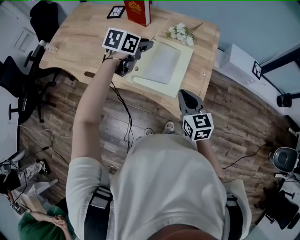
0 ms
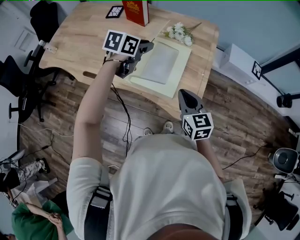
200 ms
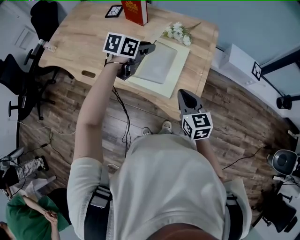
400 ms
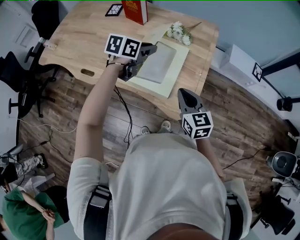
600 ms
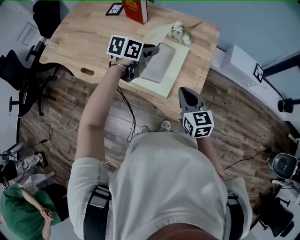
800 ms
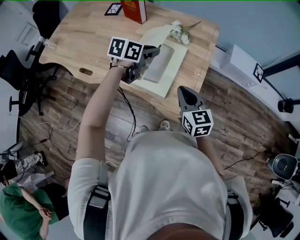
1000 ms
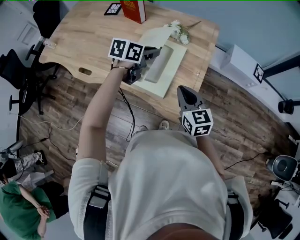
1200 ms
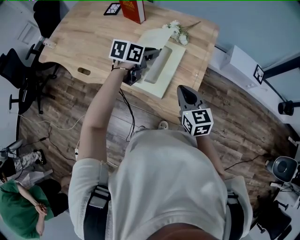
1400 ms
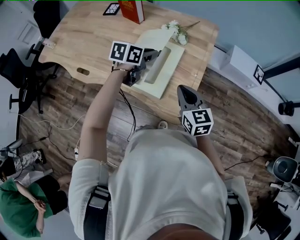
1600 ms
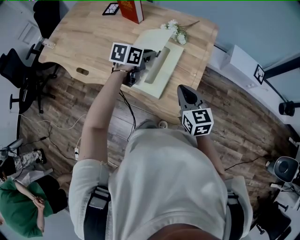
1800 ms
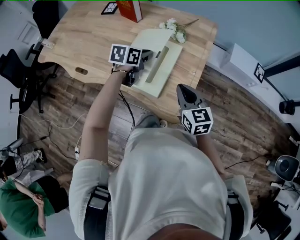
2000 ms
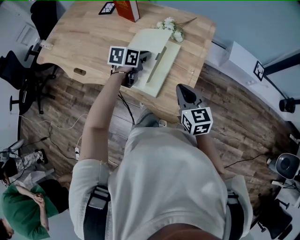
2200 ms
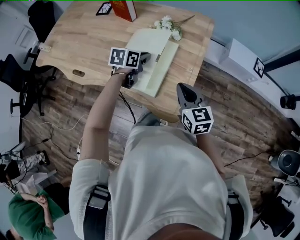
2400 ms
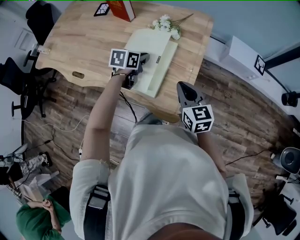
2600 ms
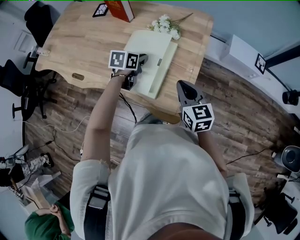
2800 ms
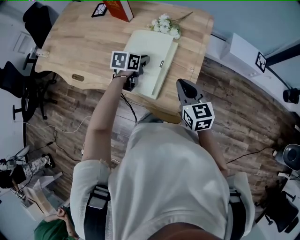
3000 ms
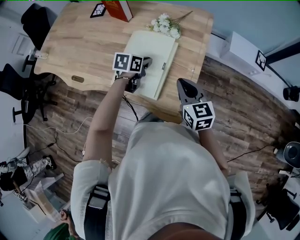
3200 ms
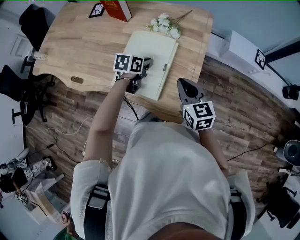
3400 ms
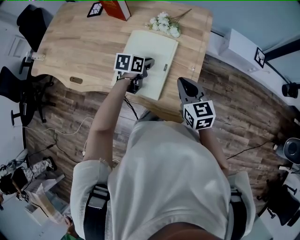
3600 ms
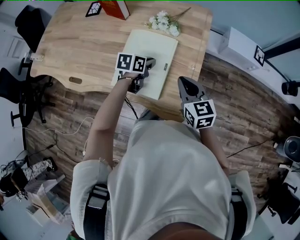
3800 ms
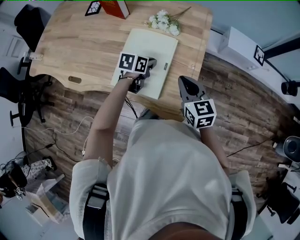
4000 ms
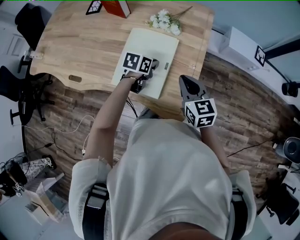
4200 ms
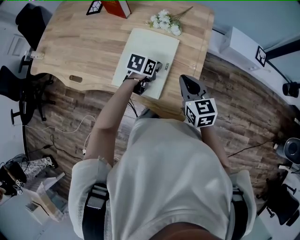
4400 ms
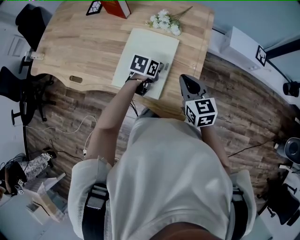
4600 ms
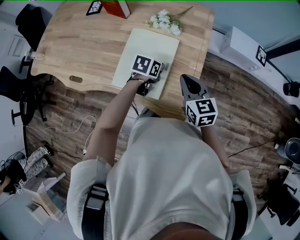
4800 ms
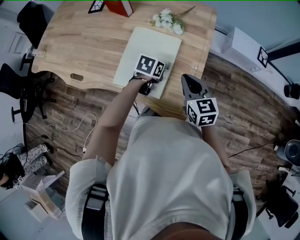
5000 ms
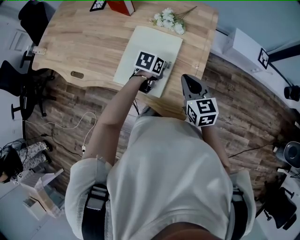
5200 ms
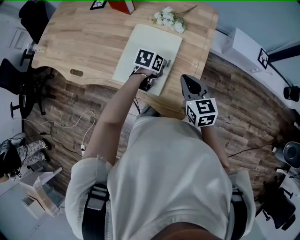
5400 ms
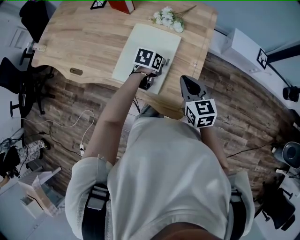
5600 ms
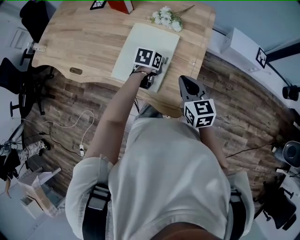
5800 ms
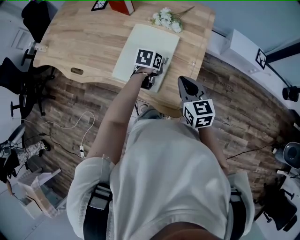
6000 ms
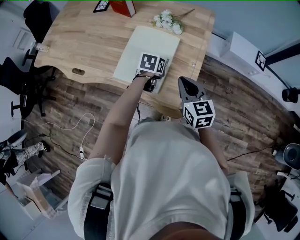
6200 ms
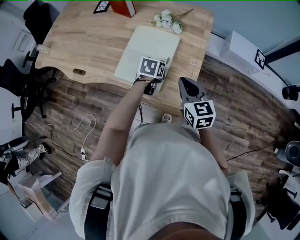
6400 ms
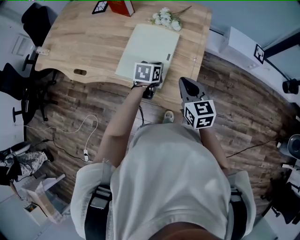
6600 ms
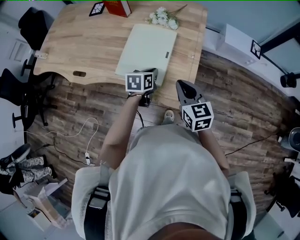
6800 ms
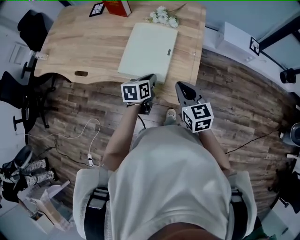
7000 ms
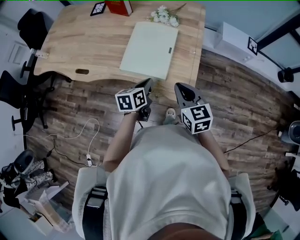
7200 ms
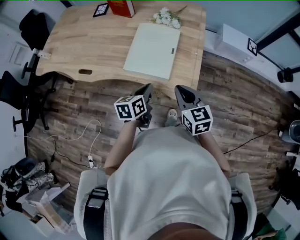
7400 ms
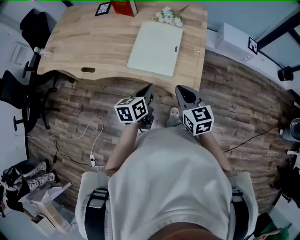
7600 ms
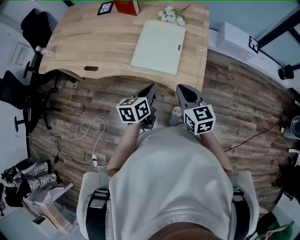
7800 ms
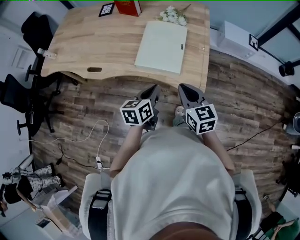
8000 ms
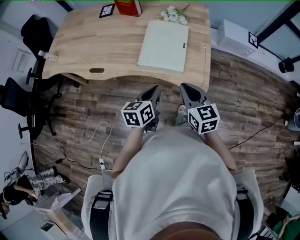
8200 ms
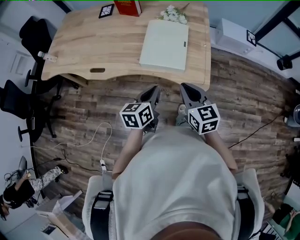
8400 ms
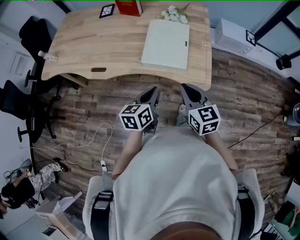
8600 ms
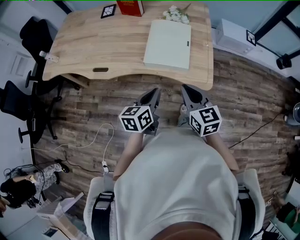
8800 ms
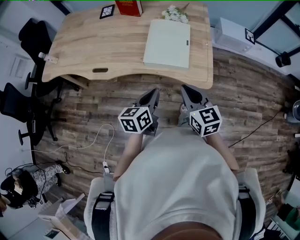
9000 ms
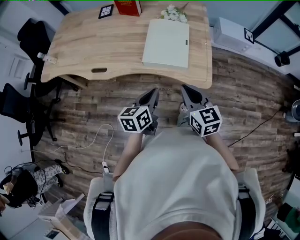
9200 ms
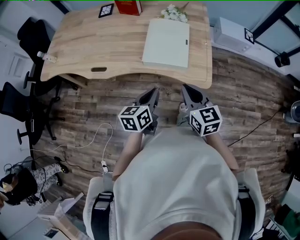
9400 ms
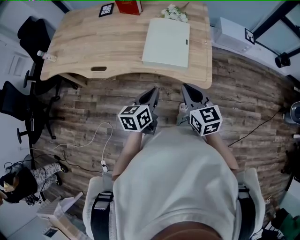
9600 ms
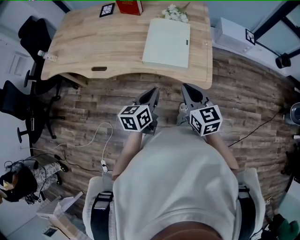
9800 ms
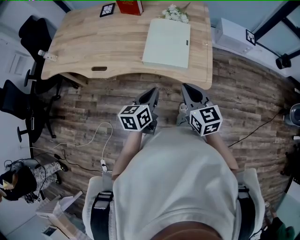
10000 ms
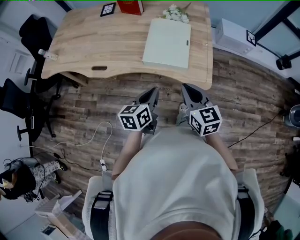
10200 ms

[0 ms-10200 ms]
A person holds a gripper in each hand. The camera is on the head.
0 ms to 1400 ms: The left gripper shifts some 10 cm to the right; the right gripper shifts some 5 cm to the right.
1400 ms to 3000 ms: The left gripper shifts approximately 10 cm downward.
3000 ms to 4400 ms: The left gripper heads to the right and downward, covering some 5 cm.
4400 ms to 5800 ms: The grippers make only small movements.
5800 ms to 7200 ms: The right gripper goes about 10 cm backward. Meanwhile the left gripper travels backward by about 20 cm, and swivels roughly 20 degrees.
7200 ms to 8800 ms: The right gripper goes about 15 cm to the left and backward. The left gripper shifts about 15 cm backward, to the left and upward.
8800 ms to 10200 ms: Neither gripper changes place.

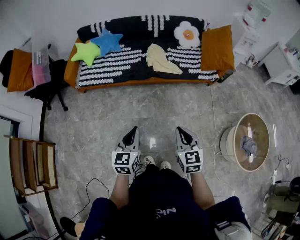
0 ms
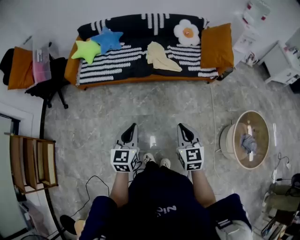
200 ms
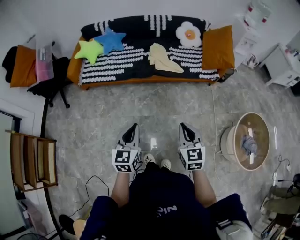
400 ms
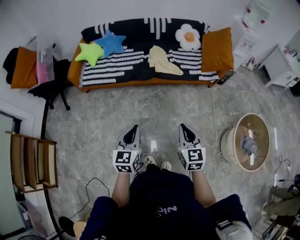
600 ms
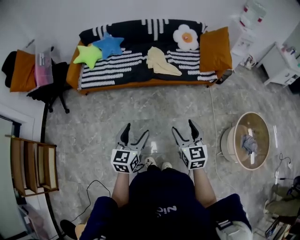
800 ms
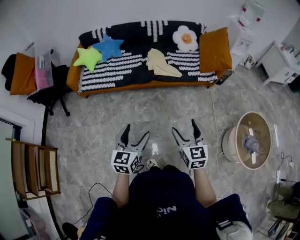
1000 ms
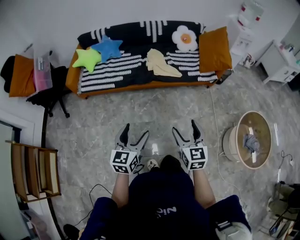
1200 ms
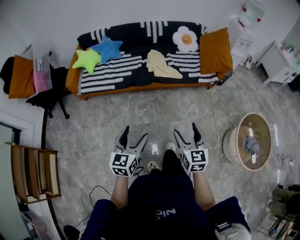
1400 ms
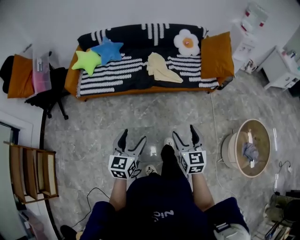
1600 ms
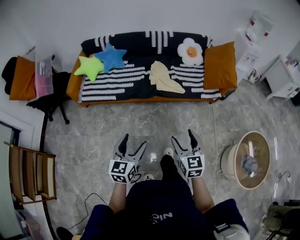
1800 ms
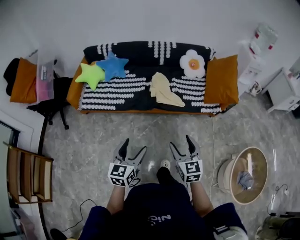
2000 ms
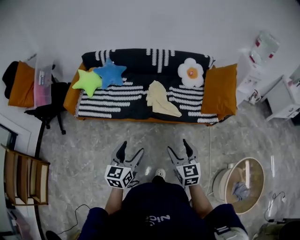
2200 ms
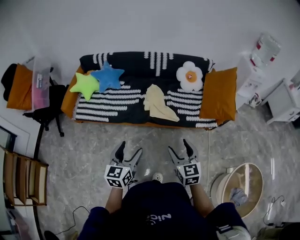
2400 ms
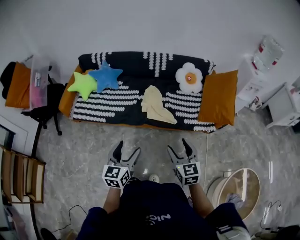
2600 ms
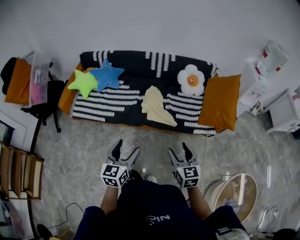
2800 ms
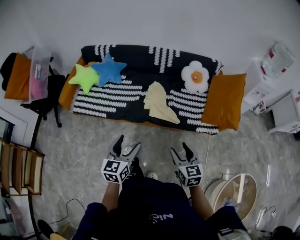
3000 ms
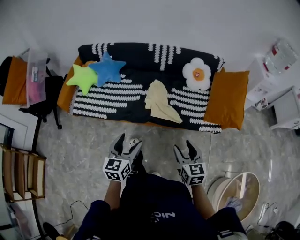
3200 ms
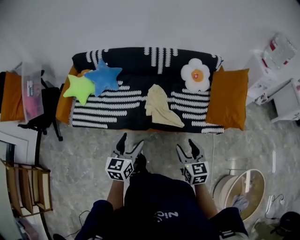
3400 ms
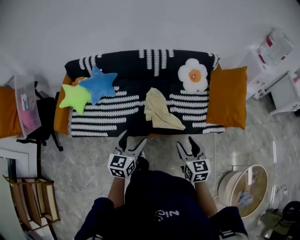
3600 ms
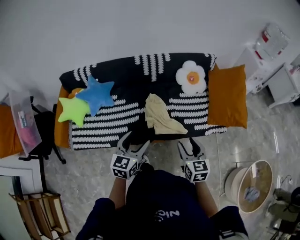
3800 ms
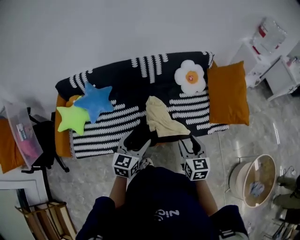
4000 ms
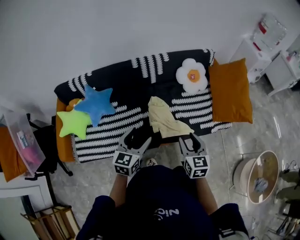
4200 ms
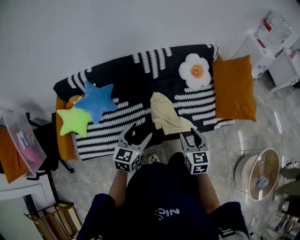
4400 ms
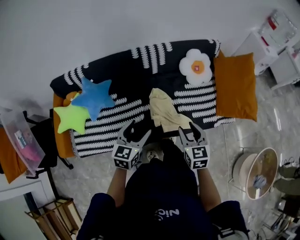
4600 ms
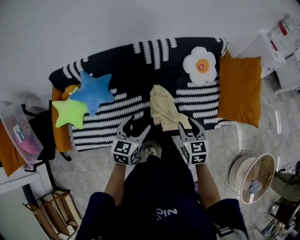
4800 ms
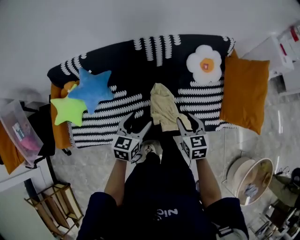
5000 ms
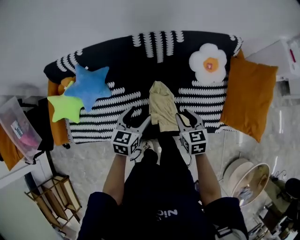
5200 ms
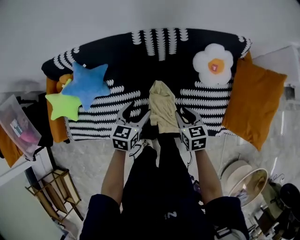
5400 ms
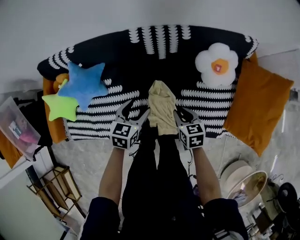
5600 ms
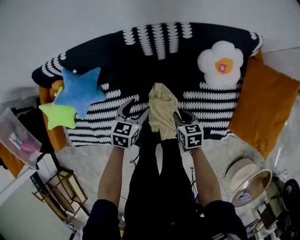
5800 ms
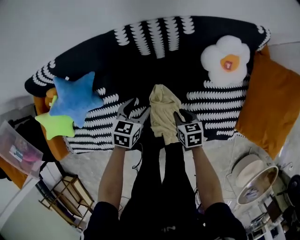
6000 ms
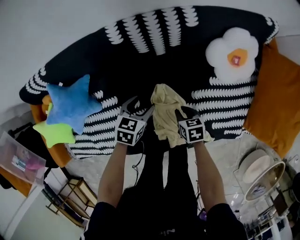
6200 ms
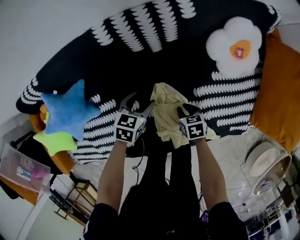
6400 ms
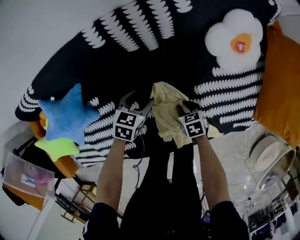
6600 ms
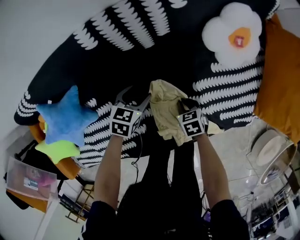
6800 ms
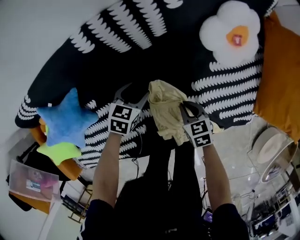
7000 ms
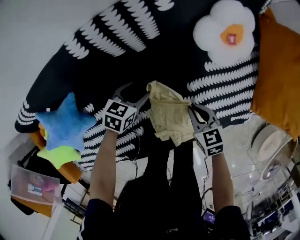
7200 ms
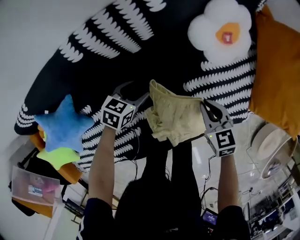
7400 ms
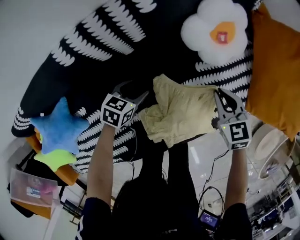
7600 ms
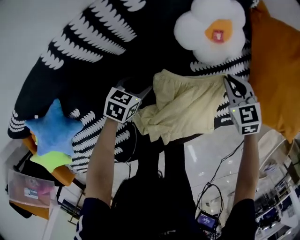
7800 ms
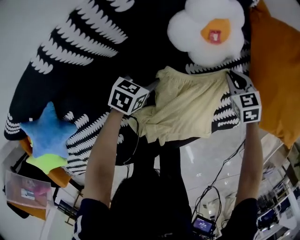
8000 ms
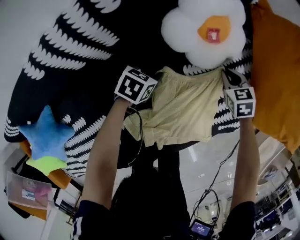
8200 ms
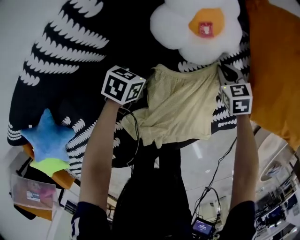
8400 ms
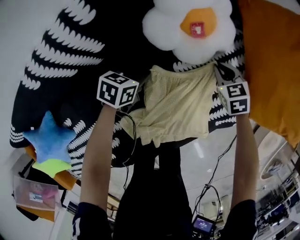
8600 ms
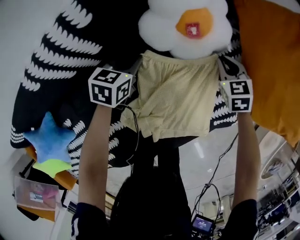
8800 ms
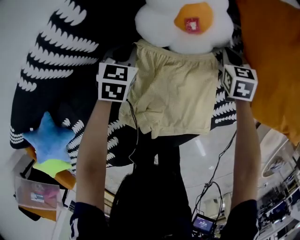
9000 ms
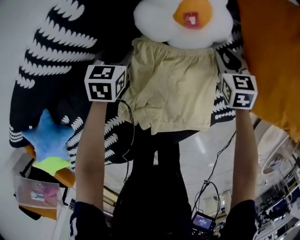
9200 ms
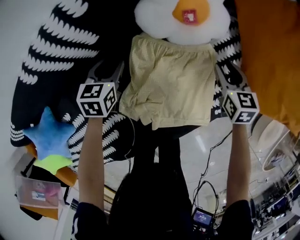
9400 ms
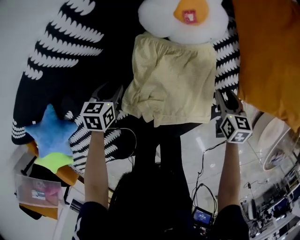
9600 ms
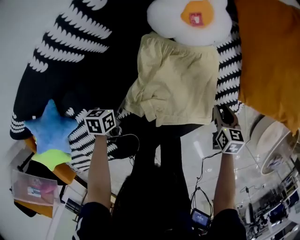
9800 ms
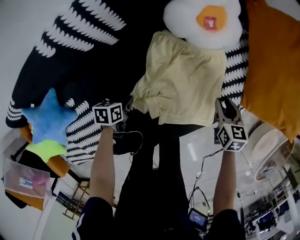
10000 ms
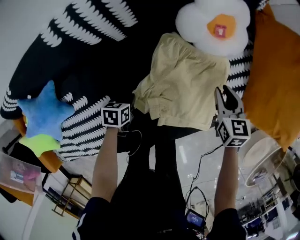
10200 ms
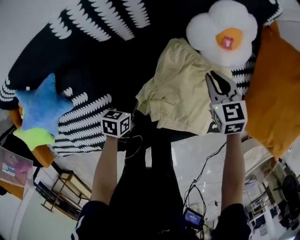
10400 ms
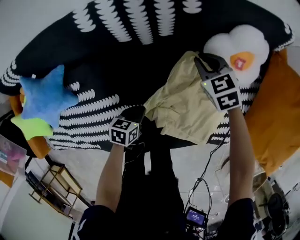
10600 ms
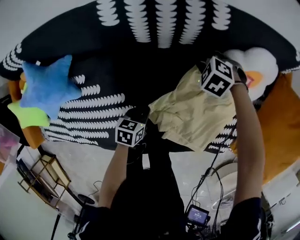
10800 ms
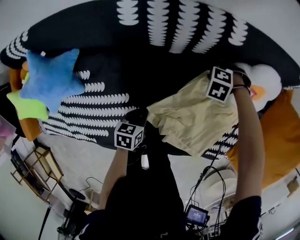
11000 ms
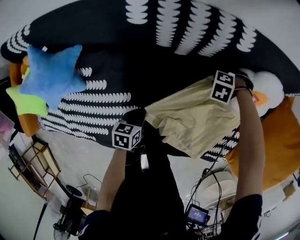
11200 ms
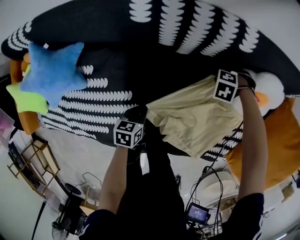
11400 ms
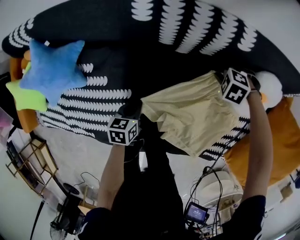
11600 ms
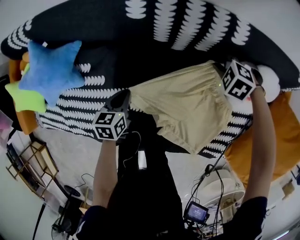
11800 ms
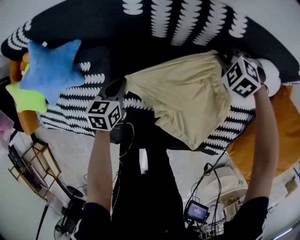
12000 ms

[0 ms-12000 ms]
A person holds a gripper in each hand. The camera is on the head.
0 ms to 1600 ms: The left gripper opens, while the right gripper opens.
1600 ms to 3000 ms: Both grippers move forward, approximately 25 cm.
3000 ms to 4400 ms: The right gripper moves about 30 cm, and swivels about 20 degrees; the left gripper ends up approximately 35 cm from where it was, and turns by approximately 30 degrees.
4400 ms to 6000 ms: The left gripper shifts roughly 40 cm forward and downward, and changes its angle by approximately 30 degrees; the right gripper travels downward and forward by about 40 cm, and turns by approximately 40 degrees.
6000 ms to 7600 ms: The left gripper goes roughly 15 cm downward, and changes its angle by roughly 30 degrees. Meanwhile the right gripper moves roughly 15 cm downward and comes back, and rotates roughly 20 degrees.
7600 ms to 9000 ms: The right gripper travels forward, to the right and downward by approximately 25 cm, and swivels approximately 30 degrees. The left gripper heads forward, covering approximately 20 cm, swivels roughly 20 degrees, and closes its fingers.
9000 ms to 10400 ms: The left gripper shifts about 30 cm backward, twists some 40 degrees counterclockwise, seen from behind, and opens, then closes once more. The right gripper heads to the left, backward and upward, covering roughly 25 cm, and turns by about 30 degrees.
10400 ms to 12000 ms: The left gripper changes place by about 15 cm, and rotates some 30 degrees. The right gripper goes downward and returns, roughly 15 cm each way, and twists approximately 60 degrees counterclockwise, seen from behind.

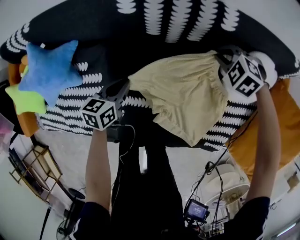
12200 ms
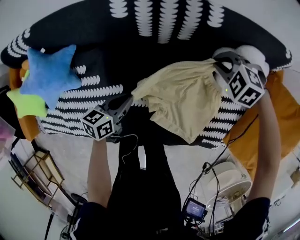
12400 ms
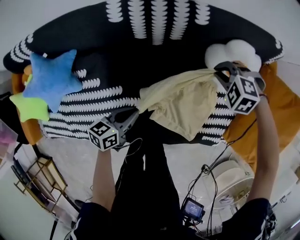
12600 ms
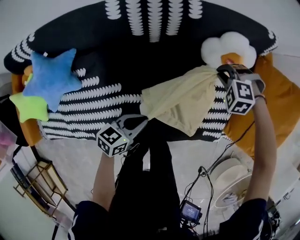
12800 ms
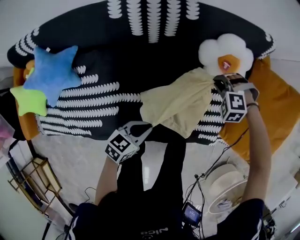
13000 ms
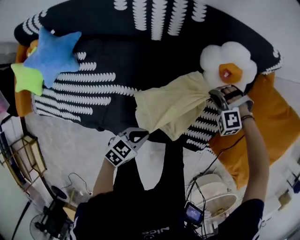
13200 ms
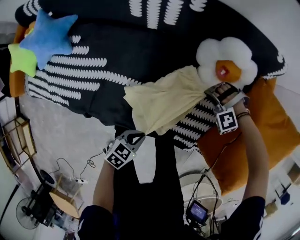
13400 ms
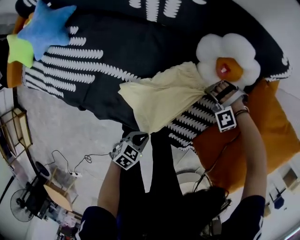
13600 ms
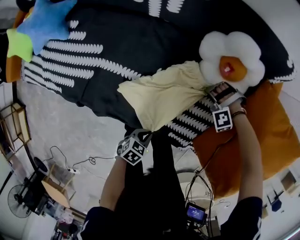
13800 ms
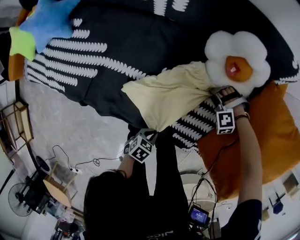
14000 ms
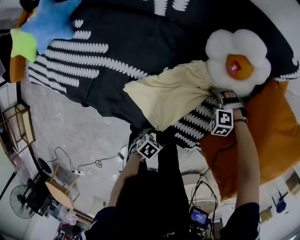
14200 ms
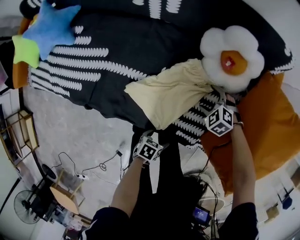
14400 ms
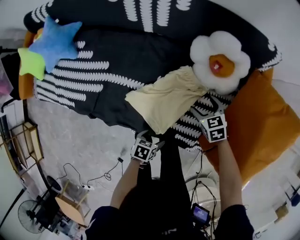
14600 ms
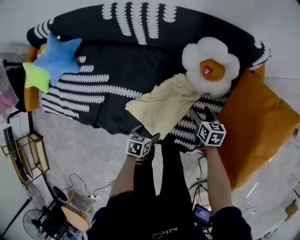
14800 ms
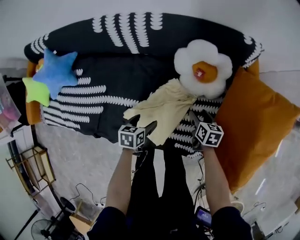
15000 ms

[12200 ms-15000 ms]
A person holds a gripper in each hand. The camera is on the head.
12200 ms to 13600 ms: The left gripper travels upward and back again, some 5 cm each way, and swivels some 20 degrees. The right gripper changes place by roughly 25 cm, and twists about 60 degrees counterclockwise, seen from behind.
13600 ms to 15000 ms: The right gripper ends up approximately 10 cm from where it was, rotates around the line of its fingers by roughly 140 degrees, clockwise from behind, and opens its fingers. The left gripper travels downward and back again, some 10 cm each way, rotates roughly 20 degrees, and opens its fingers.
